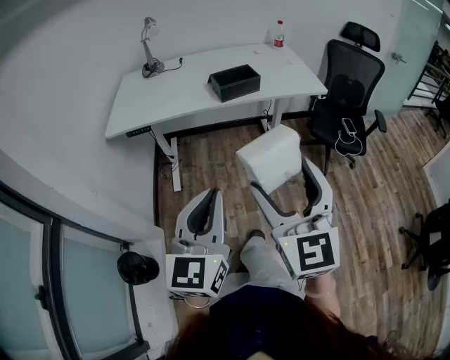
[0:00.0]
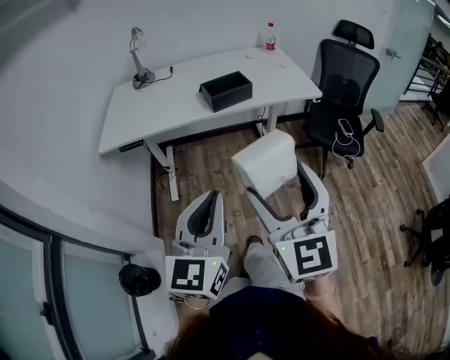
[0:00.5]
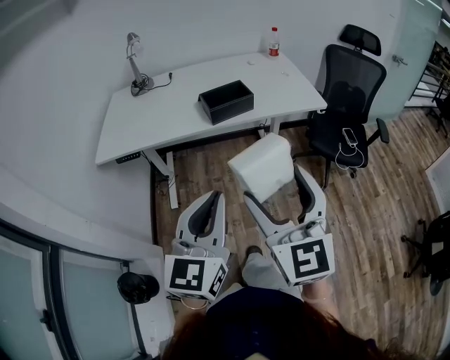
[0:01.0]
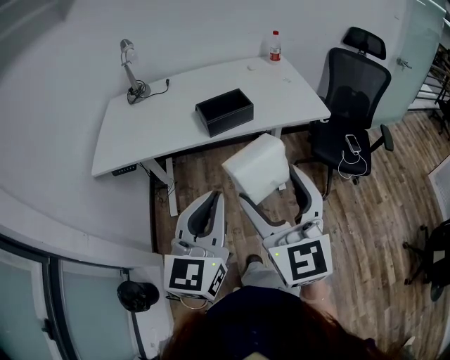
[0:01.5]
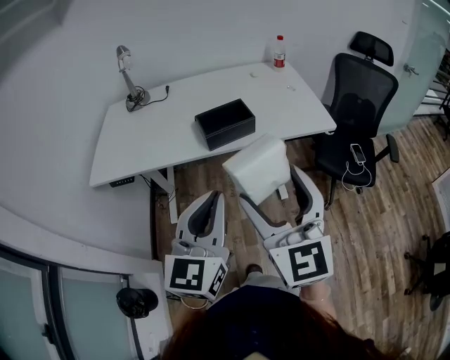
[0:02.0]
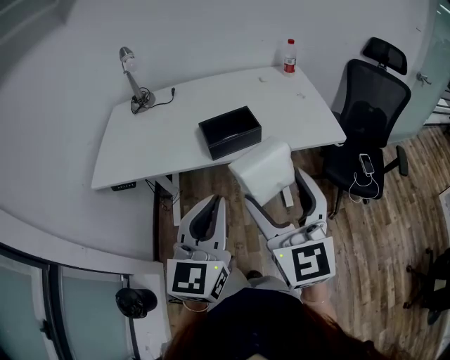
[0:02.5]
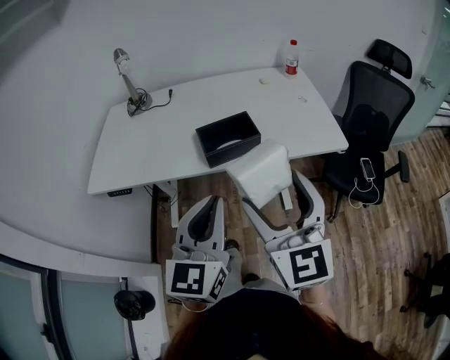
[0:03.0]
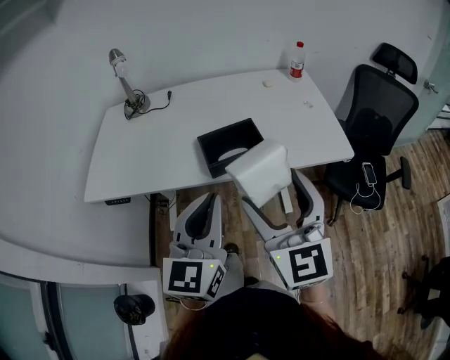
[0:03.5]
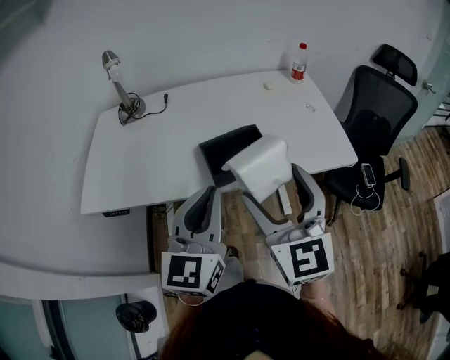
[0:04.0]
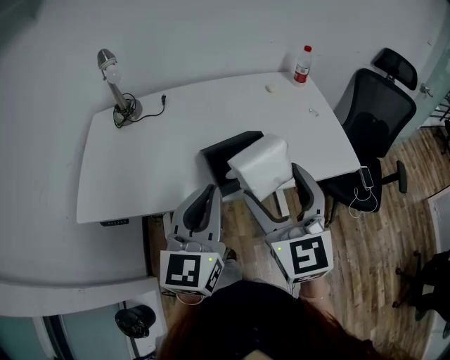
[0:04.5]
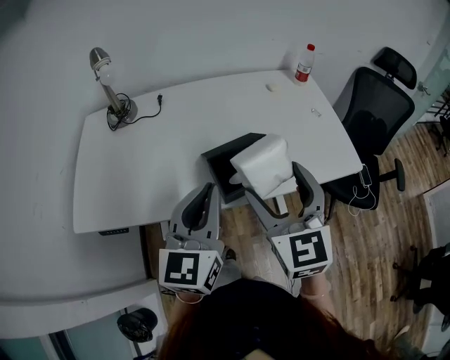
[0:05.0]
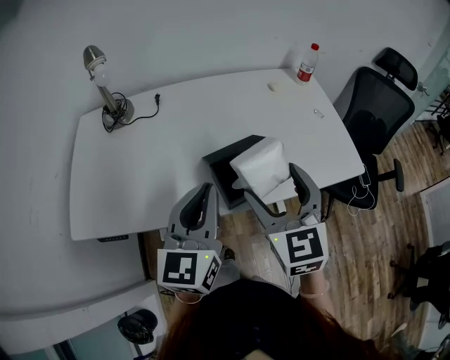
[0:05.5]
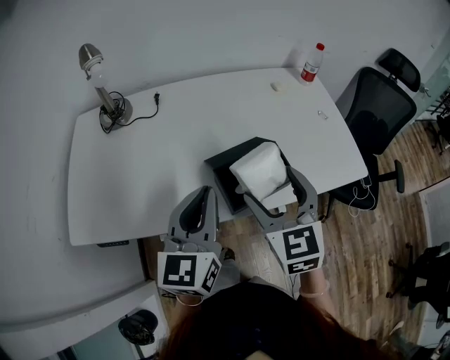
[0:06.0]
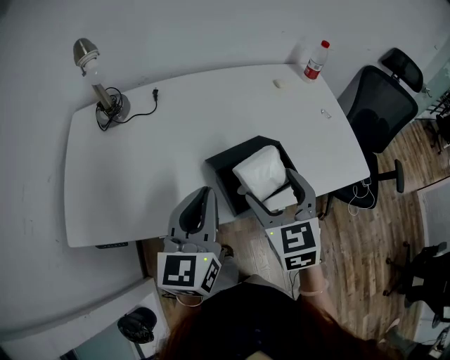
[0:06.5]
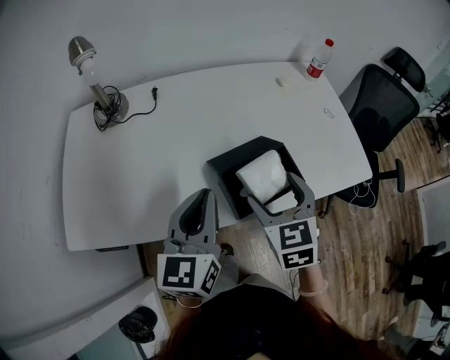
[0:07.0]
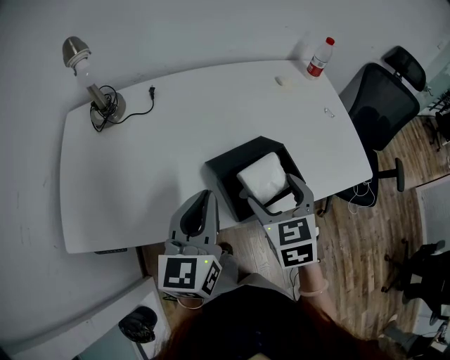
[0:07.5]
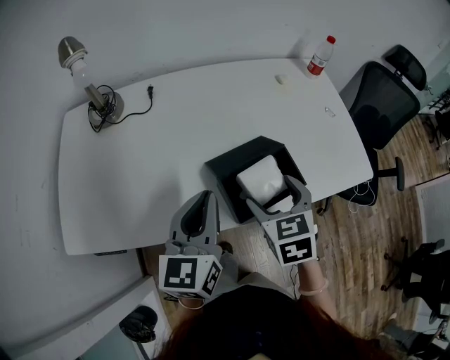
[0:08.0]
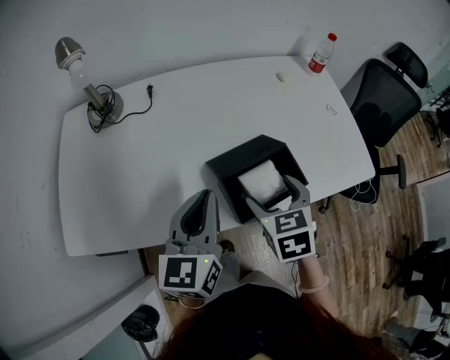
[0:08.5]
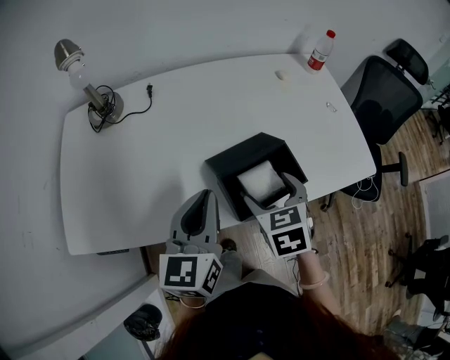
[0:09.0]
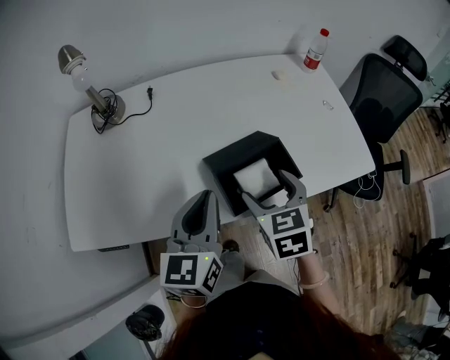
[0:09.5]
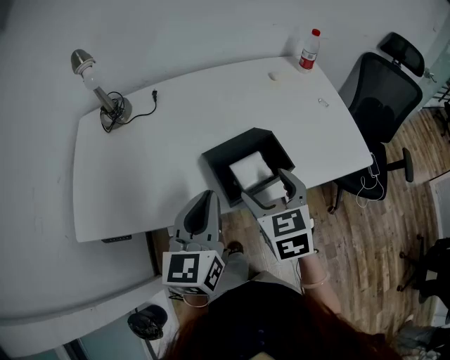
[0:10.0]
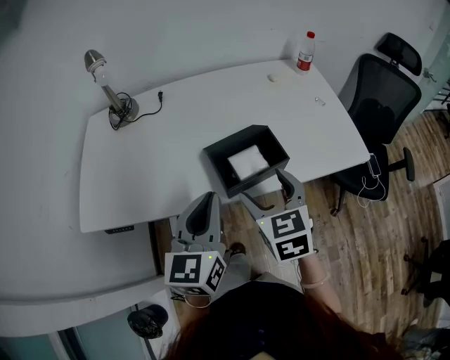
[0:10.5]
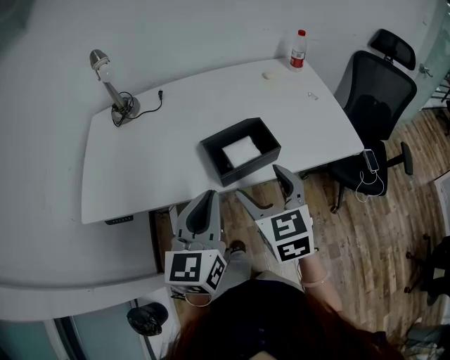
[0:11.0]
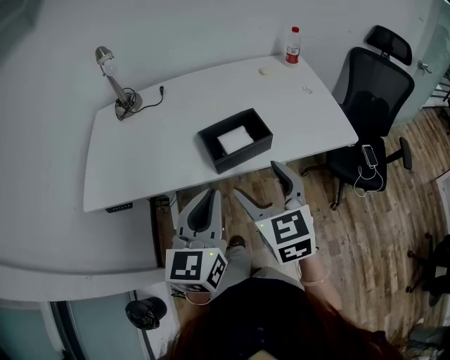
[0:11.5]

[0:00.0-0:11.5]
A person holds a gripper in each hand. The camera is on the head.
0:00.0 to 0:02.0: Both grippers move forward, some 25 cm.
0:02.0 to 0:04.0: Both grippers move forward, some 20 cm.
0:04.0 to 0:06.0: The left gripper moves forward and to the left, roughly 15 cm; the right gripper goes some 15 cm forward, downward and to the left.
0:06.0 to 0:07.5: The right gripper moves downward, some 10 cm.
0:07.5 to 0:09.5: There are only small adjustments of the grippers.
0:09.5 to 0:11.5: The right gripper goes roughly 20 cm backward and upward, and turns by approximately 20 degrees; the left gripper moves backward, approximately 15 cm.

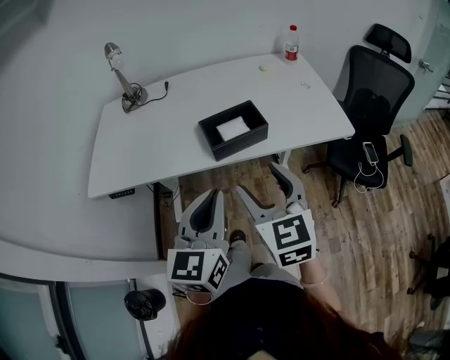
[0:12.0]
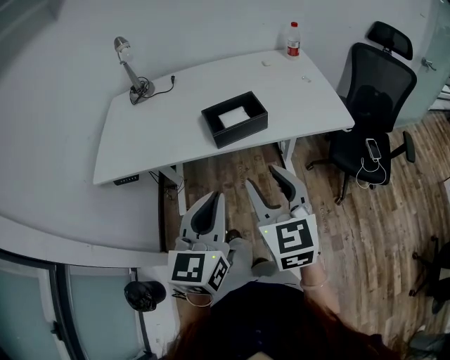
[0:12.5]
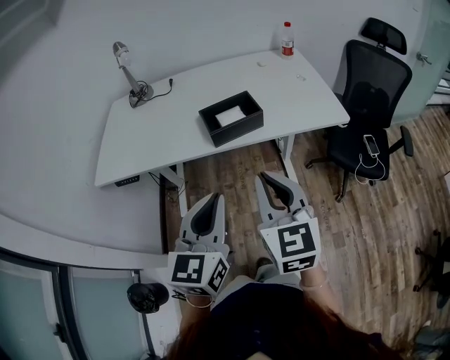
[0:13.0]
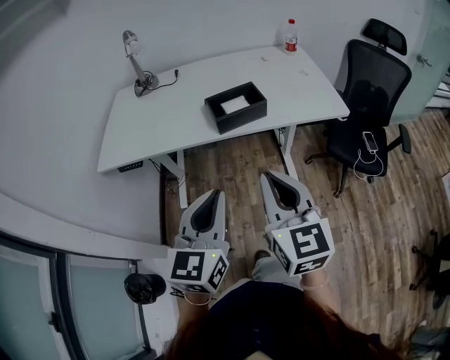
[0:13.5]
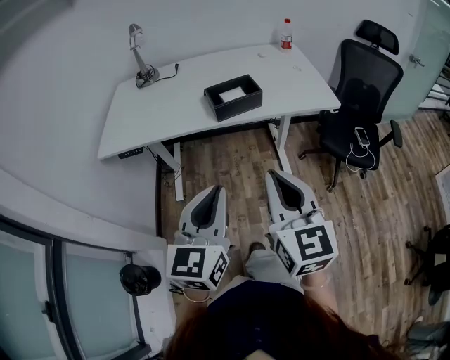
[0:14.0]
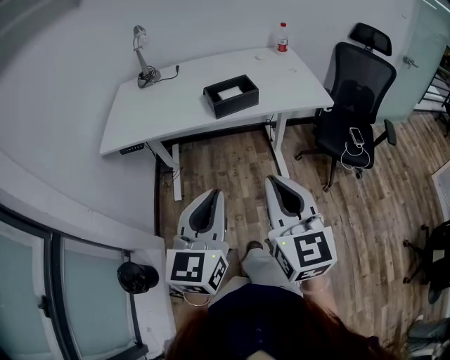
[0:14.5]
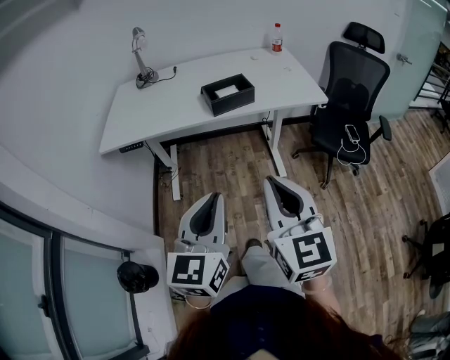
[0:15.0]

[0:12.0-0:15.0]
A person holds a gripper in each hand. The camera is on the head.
0:12.0 to 0:13.5: Both grippers travel together backward, approximately 10 cm. The right gripper closes.
0:13.5 to 0:15.0: The two grippers go some 15 cm backward.

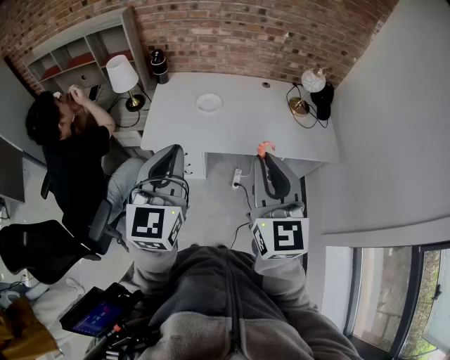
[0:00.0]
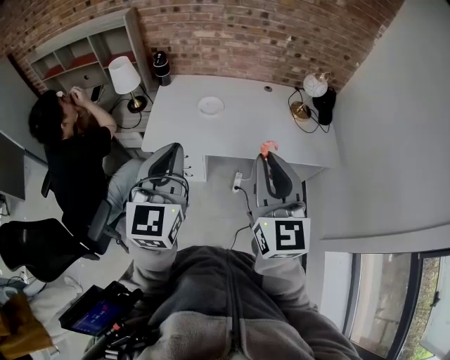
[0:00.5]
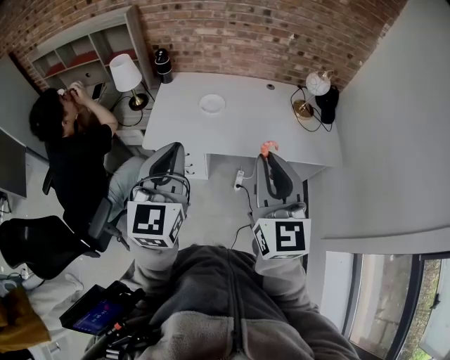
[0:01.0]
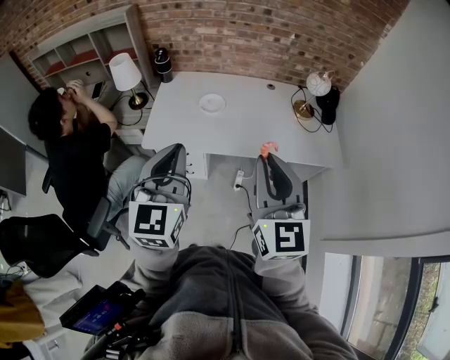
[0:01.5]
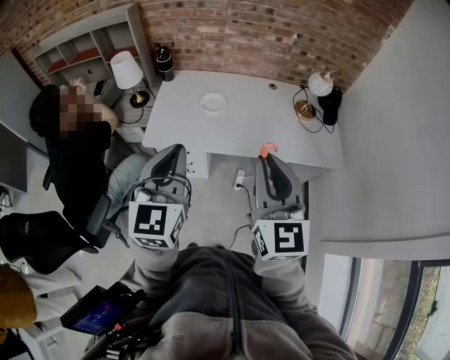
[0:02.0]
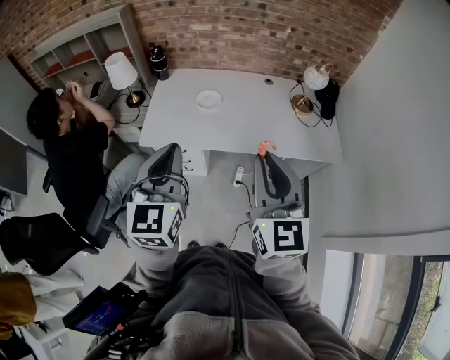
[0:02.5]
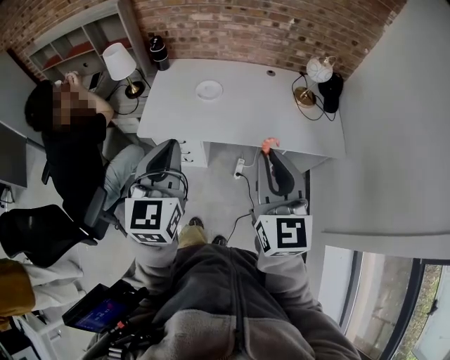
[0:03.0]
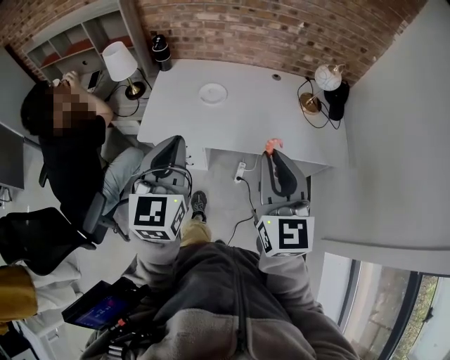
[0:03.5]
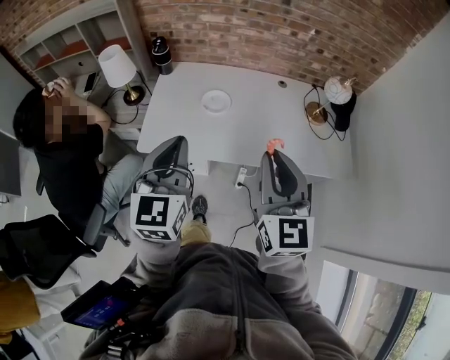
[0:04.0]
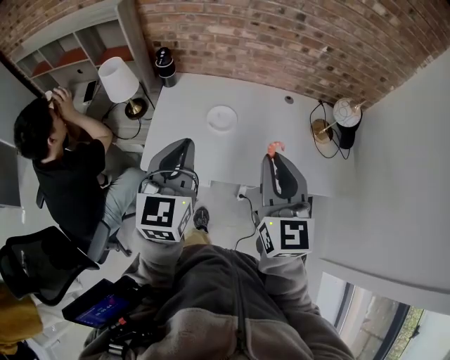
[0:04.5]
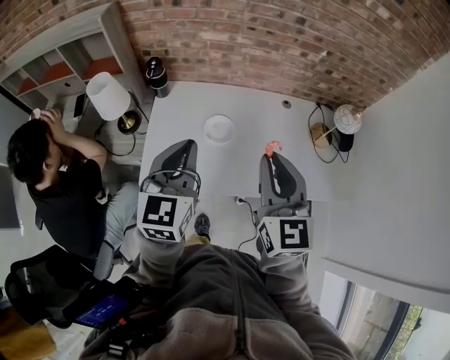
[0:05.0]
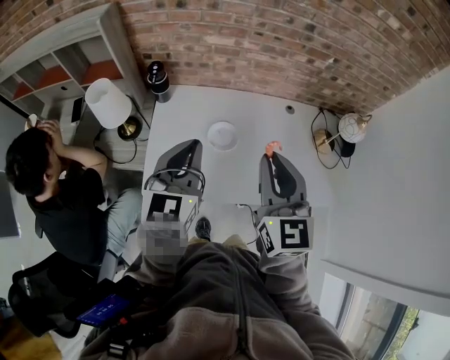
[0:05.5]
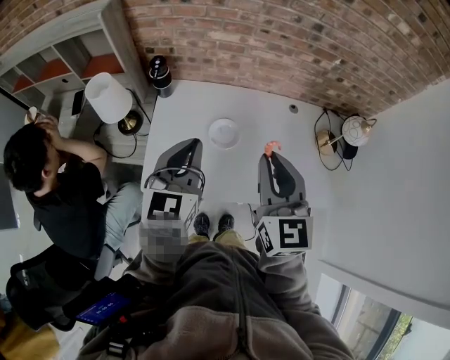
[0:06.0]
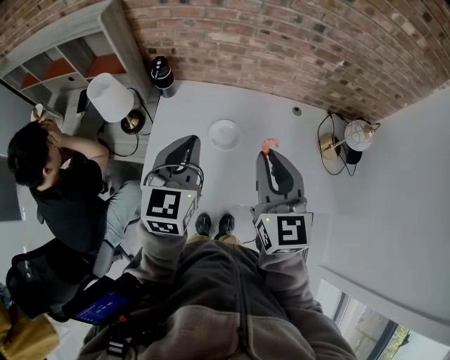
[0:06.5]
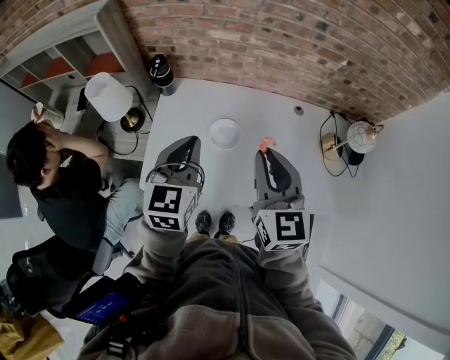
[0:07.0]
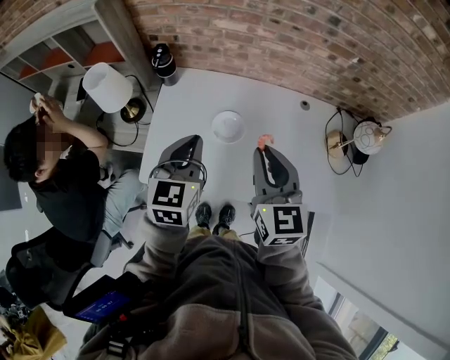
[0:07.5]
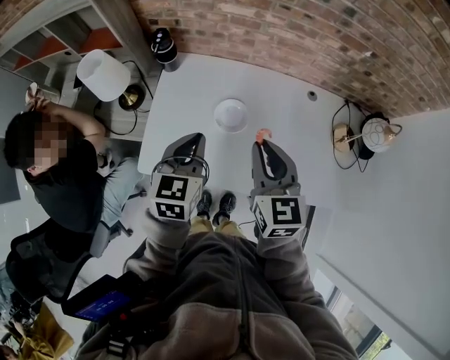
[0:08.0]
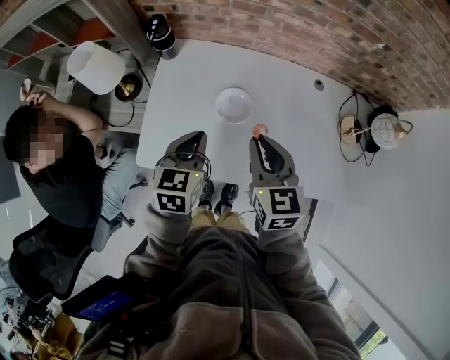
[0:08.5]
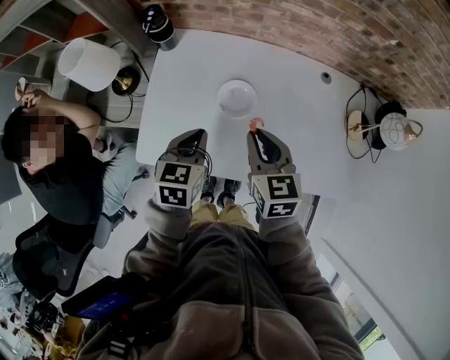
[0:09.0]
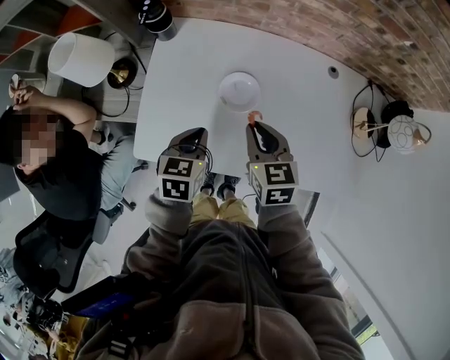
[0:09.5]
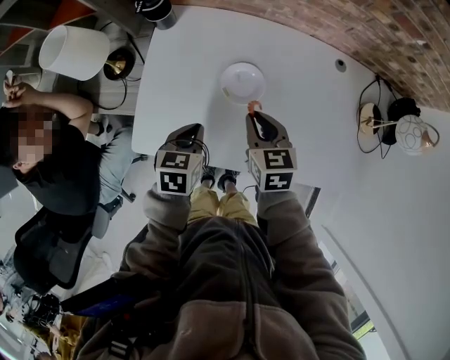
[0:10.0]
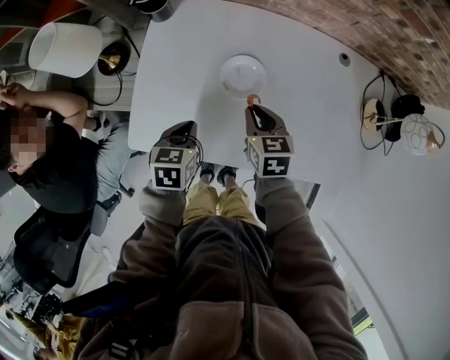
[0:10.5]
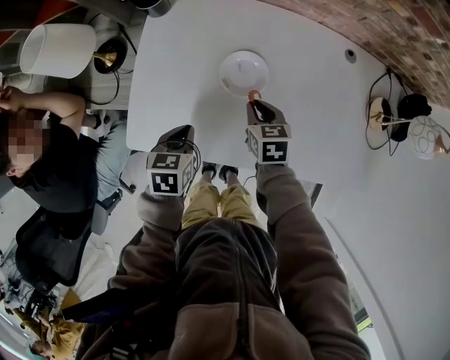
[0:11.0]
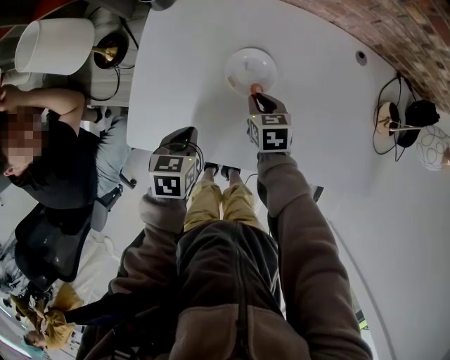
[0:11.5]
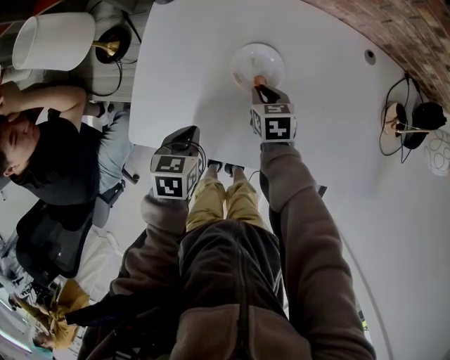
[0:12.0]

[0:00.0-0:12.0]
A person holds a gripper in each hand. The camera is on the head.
0:00.0 to 0:02.0: Both grippers stay put.
0:02.0 to 0:04.0: Both grippers travel together forward, some 15 cm.
0:04.0 to 0:06.0: The left gripper shifts some 20 cm forward; the right gripper shifts about 25 cm forward and to the left.
0:06.0 to 0:08.0: The left gripper shifts roughly 10 cm downward; the right gripper moves downward and forward, about 10 cm.
0:08.0 to 0:10.0: The grippers both shift downward by roughly 20 cm. The left gripper changes its angle by roughly 30 degrees, while the right gripper changes its angle by about 20 degrees.
0:10.0 to 0:12.0: The right gripper is displaced downward by some 15 cm, while the left gripper travels downward by roughly 5 cm.
